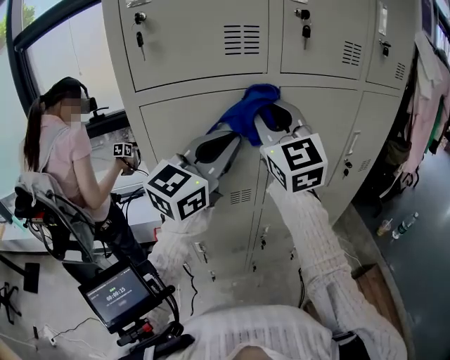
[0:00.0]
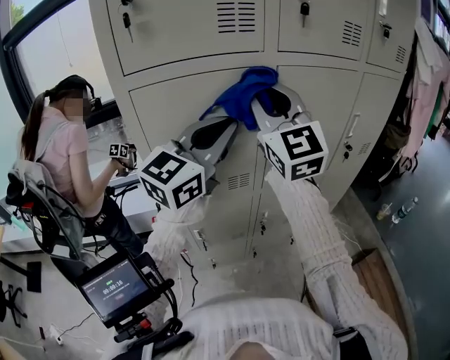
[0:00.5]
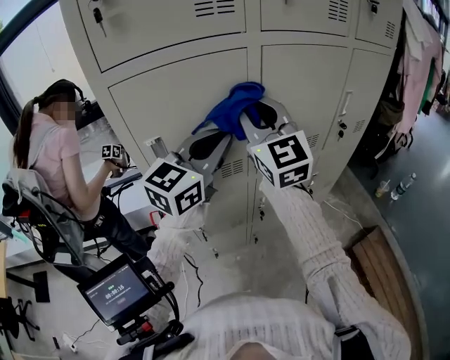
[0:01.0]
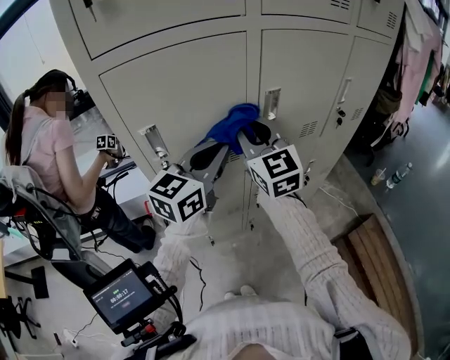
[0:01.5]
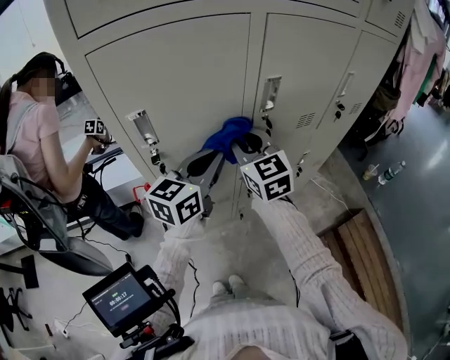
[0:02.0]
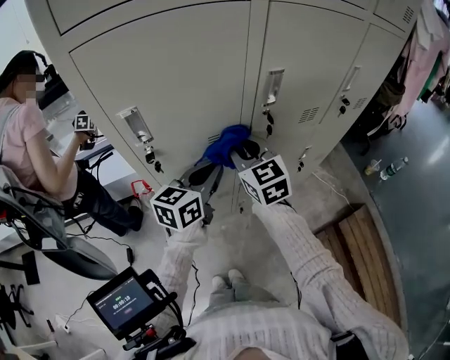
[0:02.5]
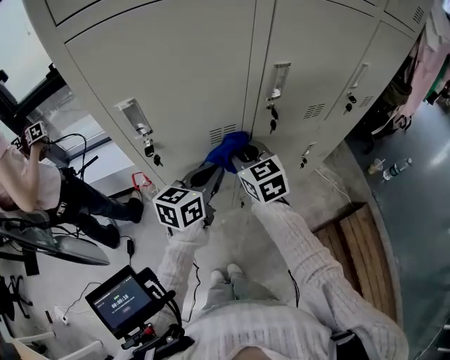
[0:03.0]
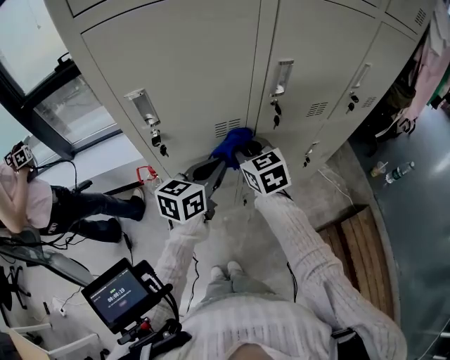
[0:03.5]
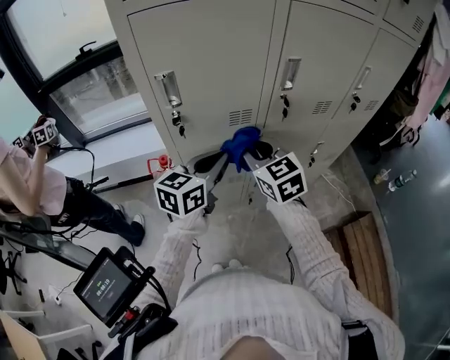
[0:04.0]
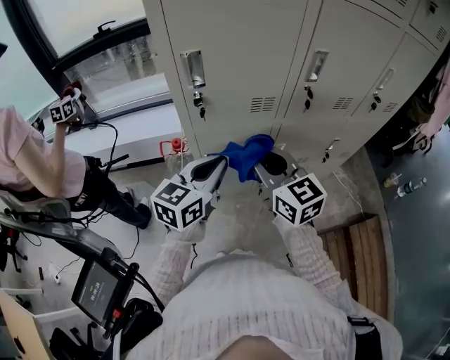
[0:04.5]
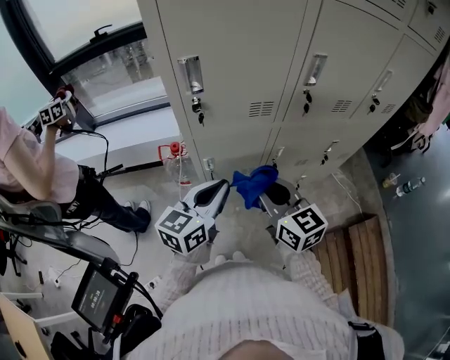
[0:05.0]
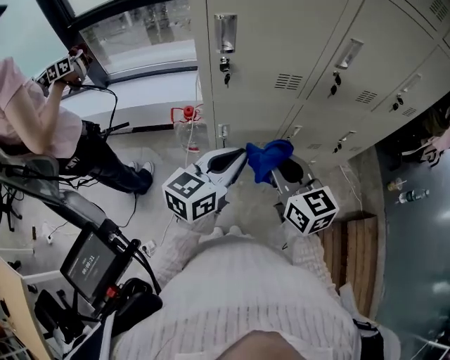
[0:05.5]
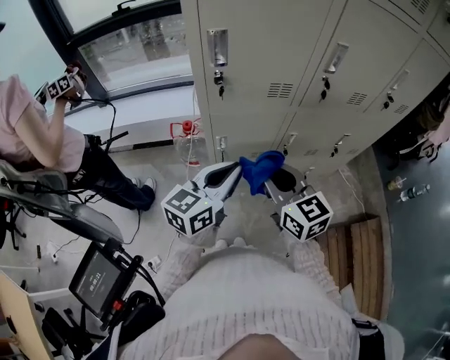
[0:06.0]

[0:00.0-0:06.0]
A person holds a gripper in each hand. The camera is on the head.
0.0 to 2.0 s: Both grippers move downward, some 20 cm. The right gripper turns by about 30 degrees; the left gripper swivels approximately 30 degrees.
2.0 to 4.0 s: The left gripper is displaced backward by roughly 5 cm; the right gripper travels backward and downward by approximately 10 cm.
4.0 to 6.0 s: The right gripper travels backward by roughly 15 cm. Meanwhile the left gripper goes about 15 cm backward and to the left.

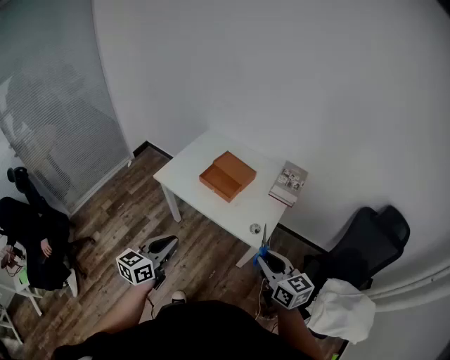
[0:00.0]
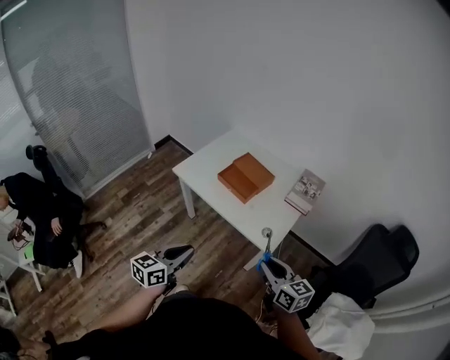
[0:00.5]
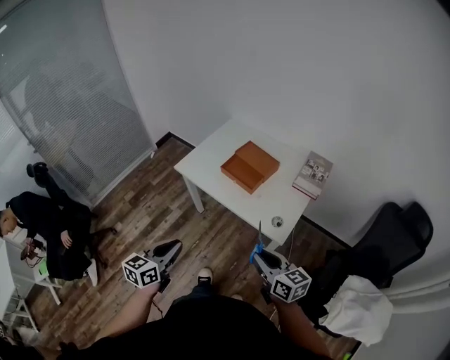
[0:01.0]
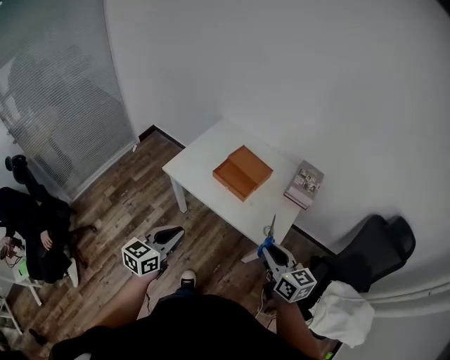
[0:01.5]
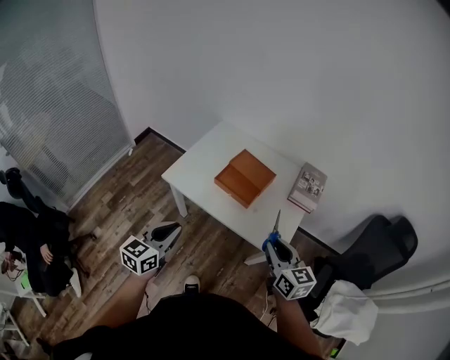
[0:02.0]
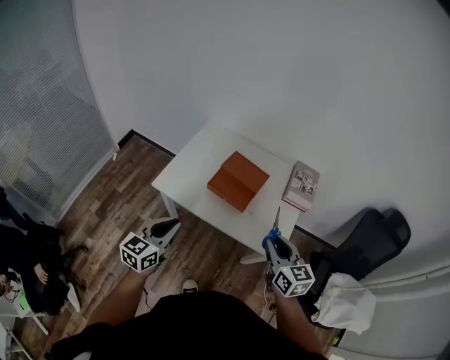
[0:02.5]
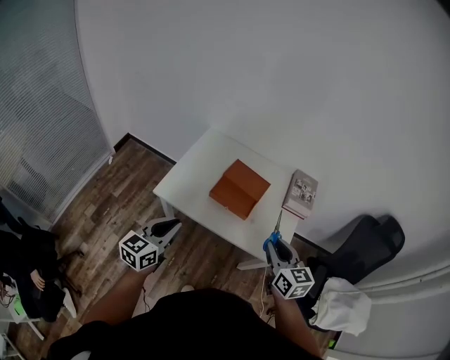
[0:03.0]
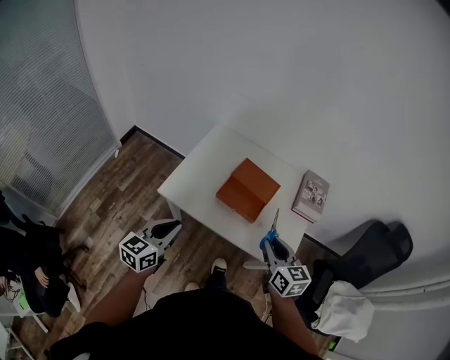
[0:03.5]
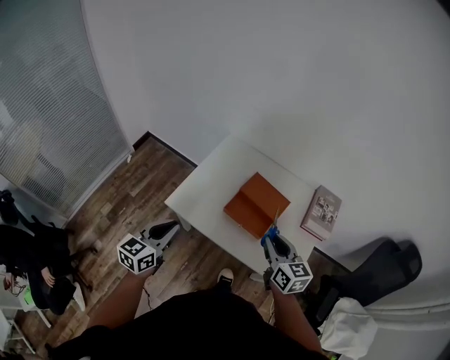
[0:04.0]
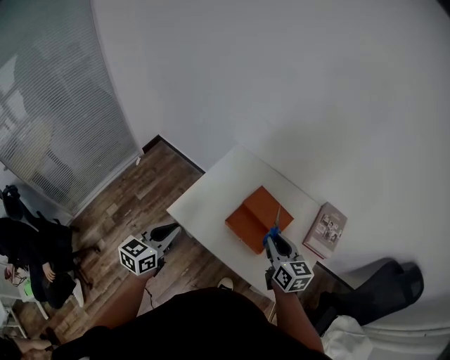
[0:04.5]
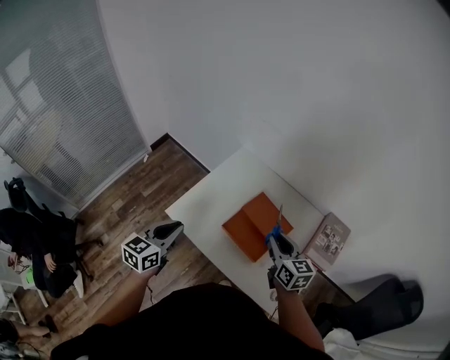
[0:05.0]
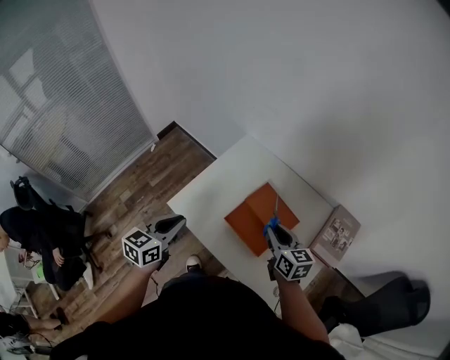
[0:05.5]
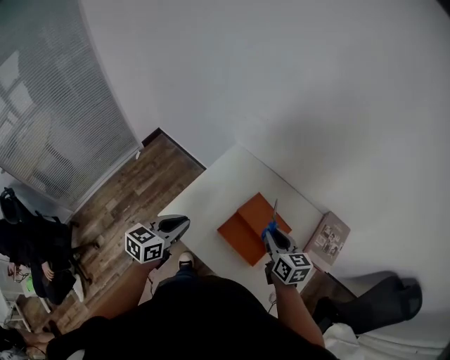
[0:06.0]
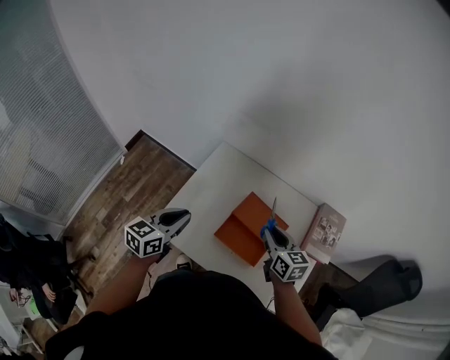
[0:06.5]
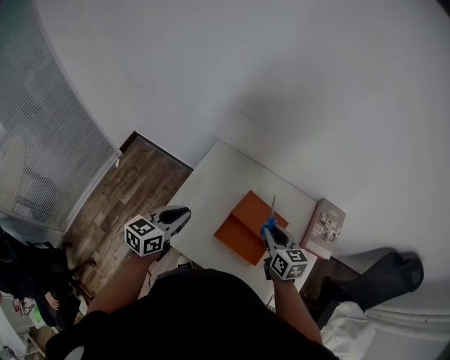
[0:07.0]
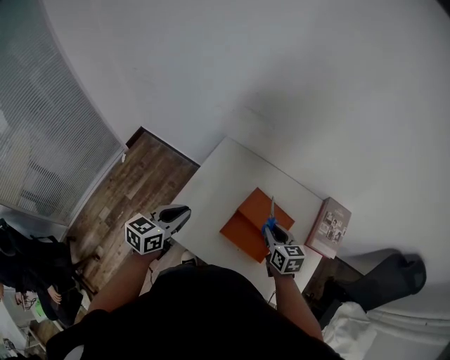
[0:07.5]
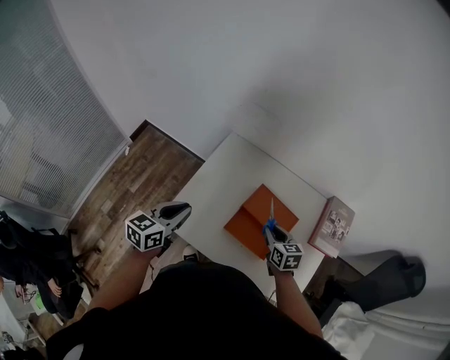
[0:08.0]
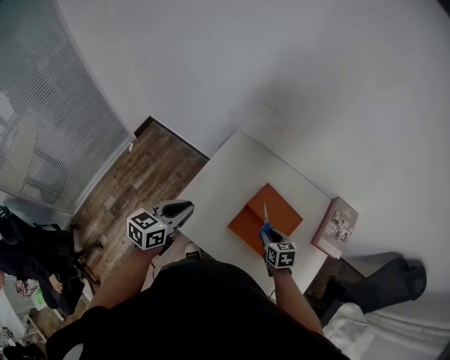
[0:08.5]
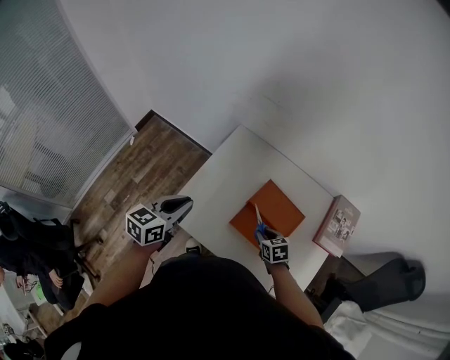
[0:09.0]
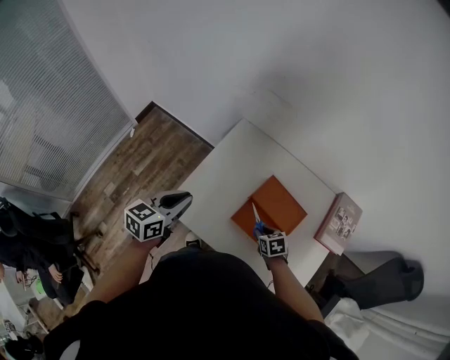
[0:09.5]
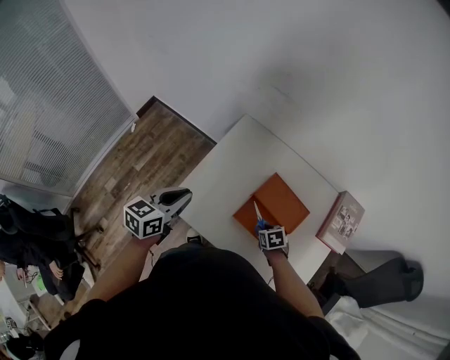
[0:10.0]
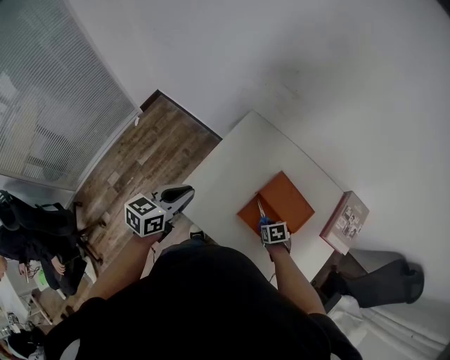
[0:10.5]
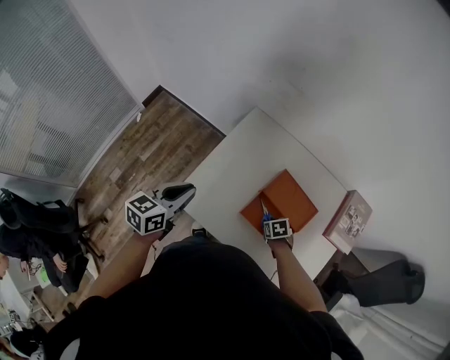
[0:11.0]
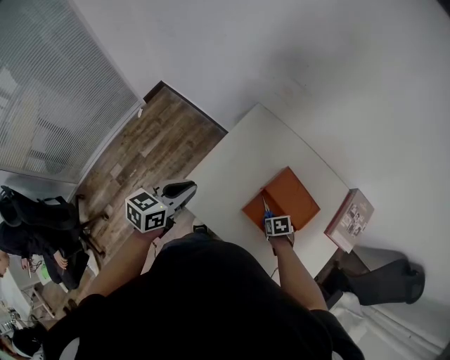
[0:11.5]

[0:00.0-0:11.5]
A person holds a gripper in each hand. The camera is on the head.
0.0 to 2.0 s: Both grippers travel together forward and to the left, about 15 cm.
2.0 to 4.0 s: Both grippers move forward and to the left, some 20 cm.
4.0 to 6.0 s: The left gripper travels forward and to the right by about 15 cm. Meanwhile the right gripper moves forward, about 15 cm.
6.0 to 7.5 s: The left gripper is displaced forward by roughly 5 cm. Meanwhile the right gripper moves downward, some 5 cm.
7.5 to 9.5 s: The right gripper travels downward by approximately 15 cm, and turns by about 30 degrees.
9.5 to 11.5 s: The right gripper goes some 5 cm downward.

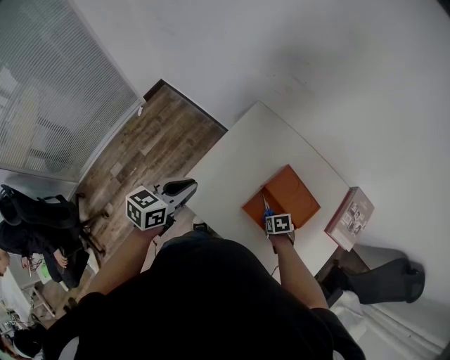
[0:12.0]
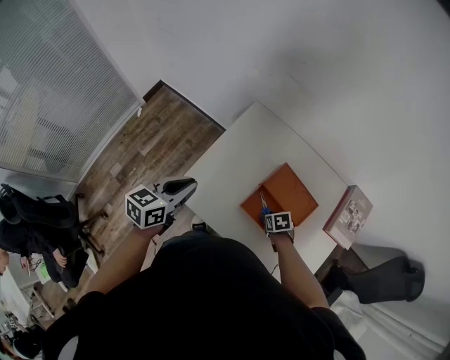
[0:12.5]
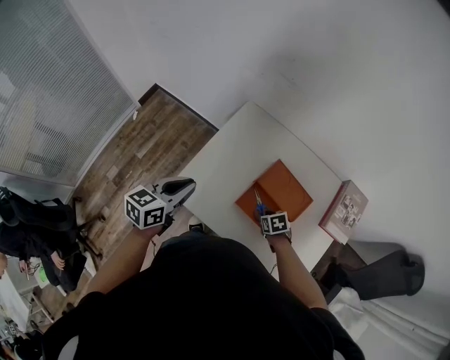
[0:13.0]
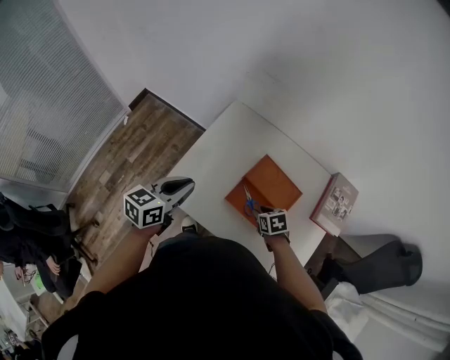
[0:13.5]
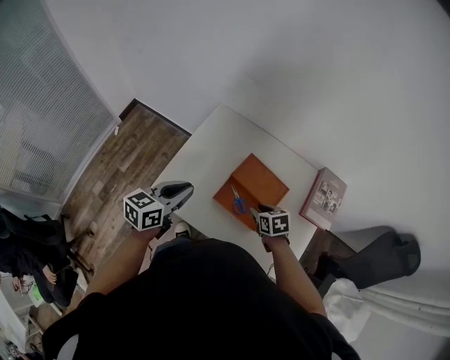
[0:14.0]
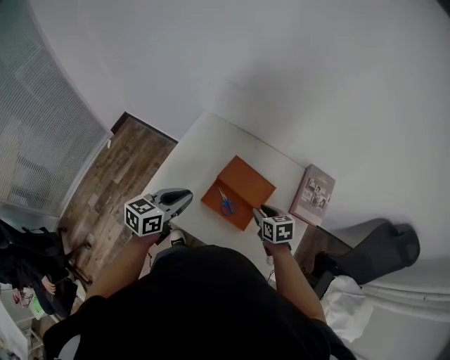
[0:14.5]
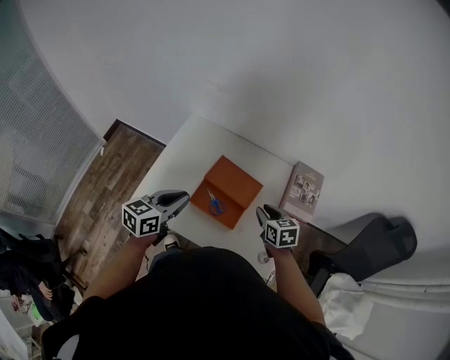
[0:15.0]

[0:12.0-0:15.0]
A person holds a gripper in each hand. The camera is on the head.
12.0 to 13.5 s: The left gripper shifts by roughly 5 cm. Meanwhile the right gripper moves upward, approximately 10 cm.
13.5 to 15.0 s: The right gripper heads upward and to the right, covering about 20 cm, and swivels about 30 degrees, while the left gripper goes some 15 cm to the right.

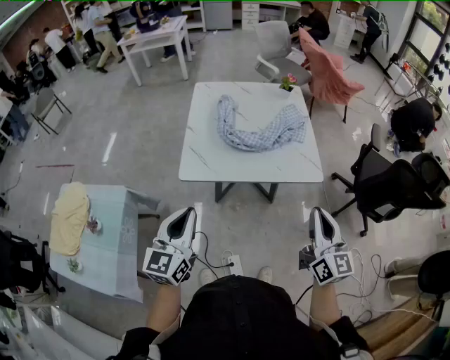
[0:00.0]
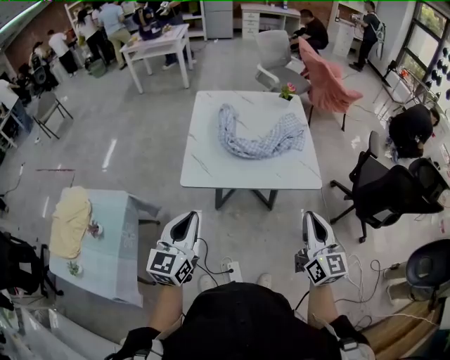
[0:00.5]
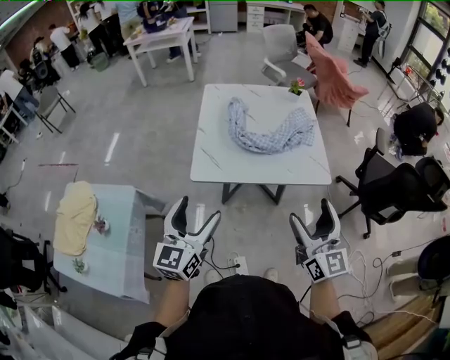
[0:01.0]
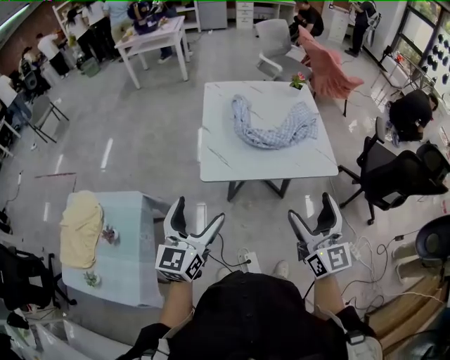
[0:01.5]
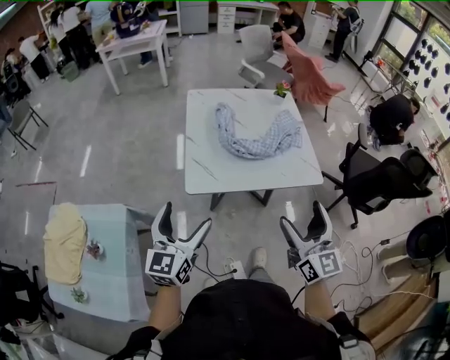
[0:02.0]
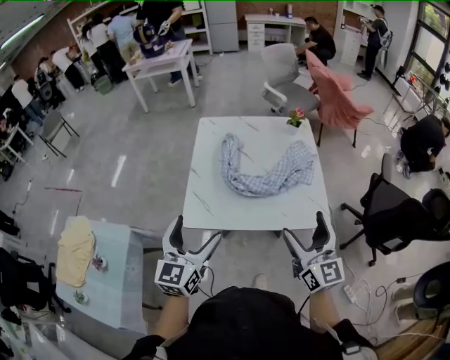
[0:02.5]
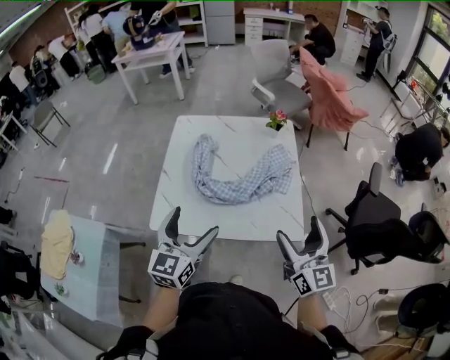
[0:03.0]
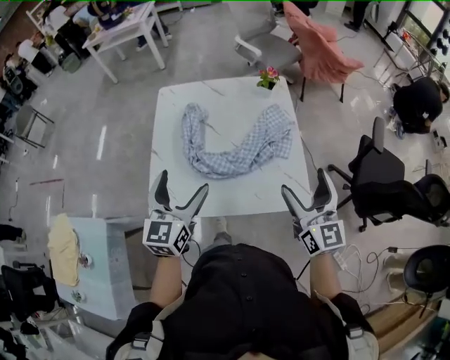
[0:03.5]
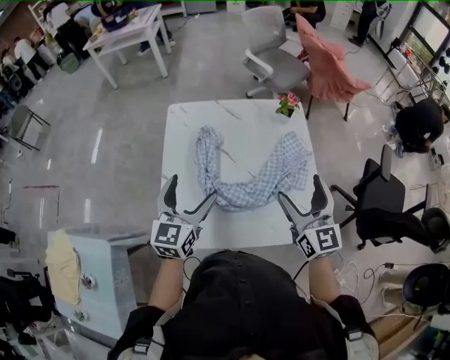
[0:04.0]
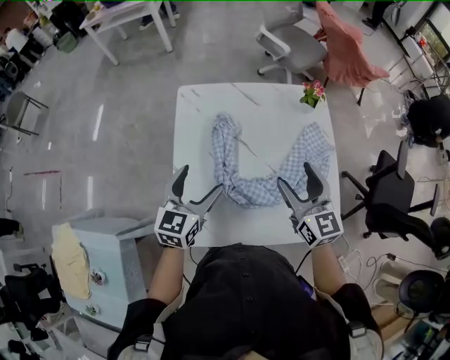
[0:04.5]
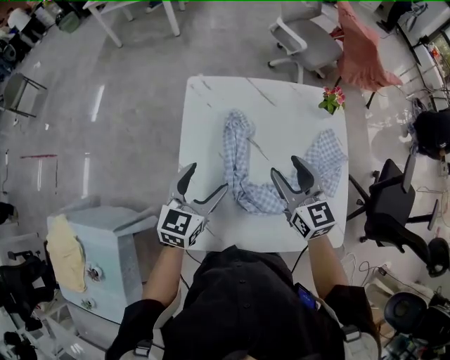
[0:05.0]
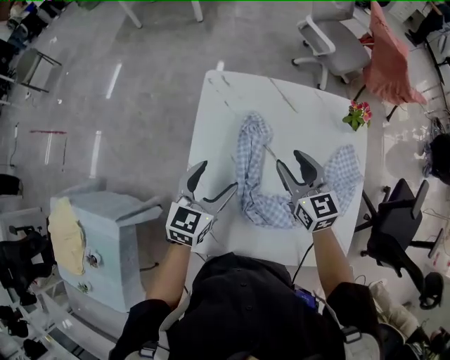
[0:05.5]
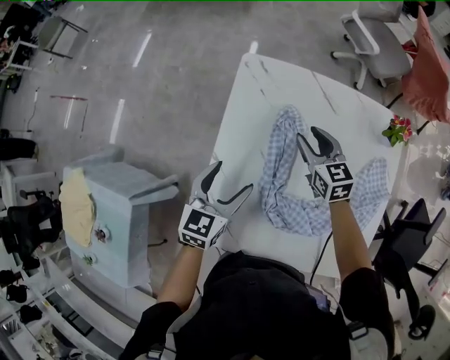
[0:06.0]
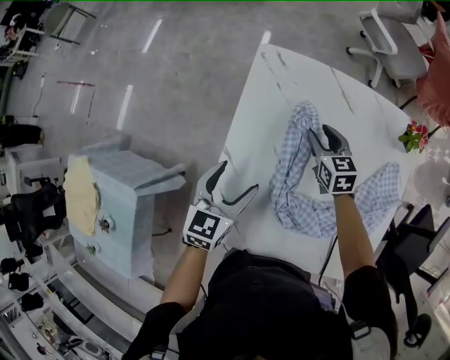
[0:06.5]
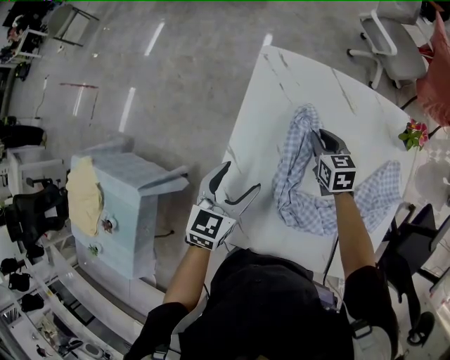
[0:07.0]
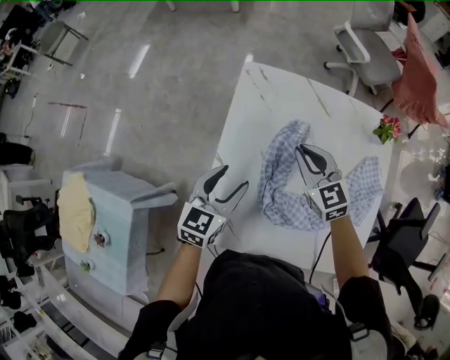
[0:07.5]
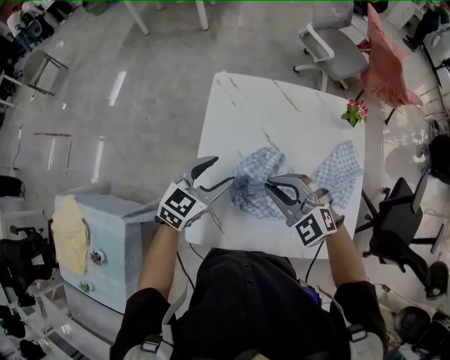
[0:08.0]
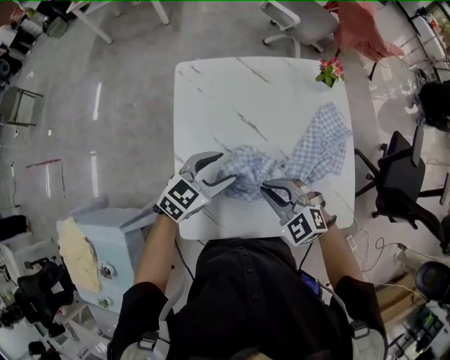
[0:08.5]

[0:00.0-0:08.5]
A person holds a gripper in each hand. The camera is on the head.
0.0 to 2.0 s: Both grippers move to the left, some 15 cm. The right gripper opens its fingers; the left gripper opens.
2.0 to 4.0 s: The two grippers travel together, forward, about 40 cm.
4.0 to 6.5 s: The left gripper heads downward, to the left and forward, covering approximately 25 cm, and swivels approximately 20 degrees. Meanwhile the right gripper moves forward, downward and to the left, some 50 cm, tilts its fingers about 30 degrees downward, and closes.
6.5 to 8.5 s: The right gripper shifts some 30 cm backward, and swivels approximately 40 degrees. The left gripper moves to the right, roughly 10 cm, and turns by about 50 degrees.
